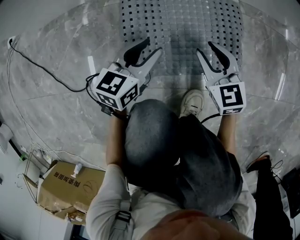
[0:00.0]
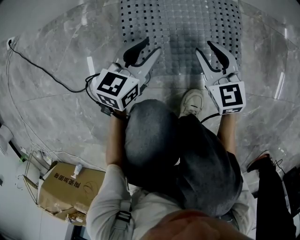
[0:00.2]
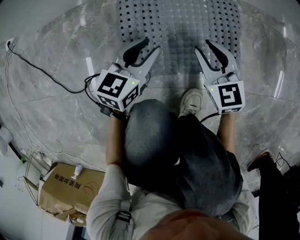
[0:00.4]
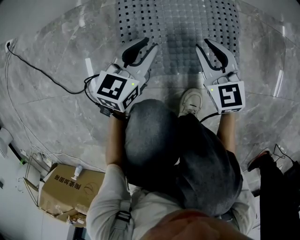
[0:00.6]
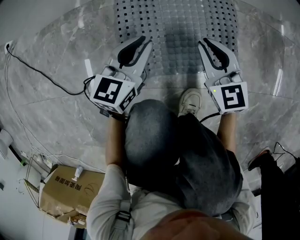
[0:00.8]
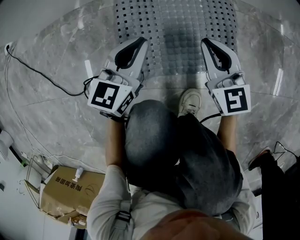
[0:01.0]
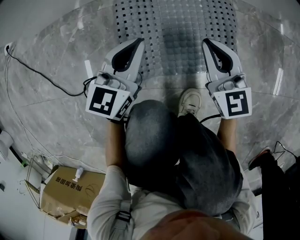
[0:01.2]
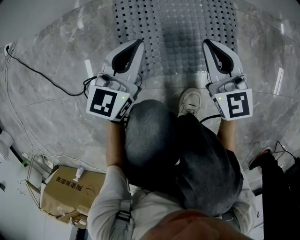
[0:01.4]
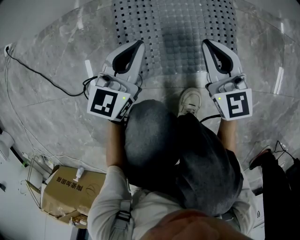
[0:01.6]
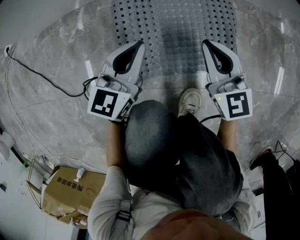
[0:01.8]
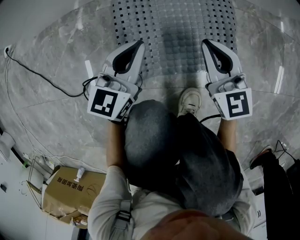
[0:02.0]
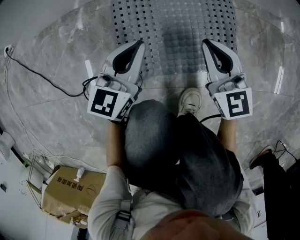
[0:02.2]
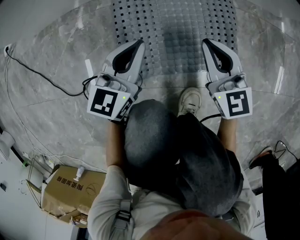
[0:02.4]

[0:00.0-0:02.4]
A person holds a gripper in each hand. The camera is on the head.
0:00.0 to 0:01.2: Both grippers move upward, about 5 cm. The right gripper closes its fingers, while the left gripper closes.
0:01.2 to 0:02.4: The two grippers keep their place.

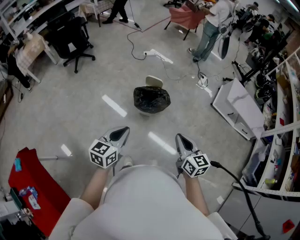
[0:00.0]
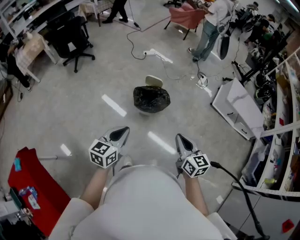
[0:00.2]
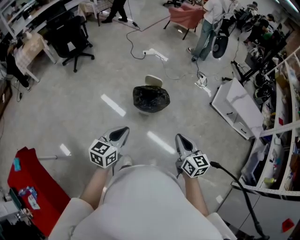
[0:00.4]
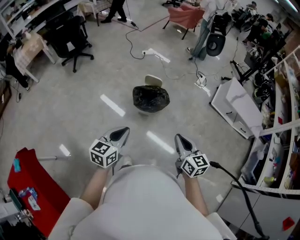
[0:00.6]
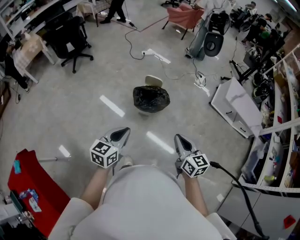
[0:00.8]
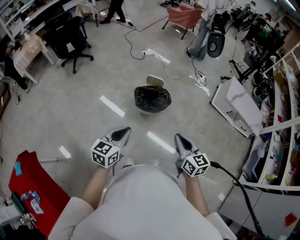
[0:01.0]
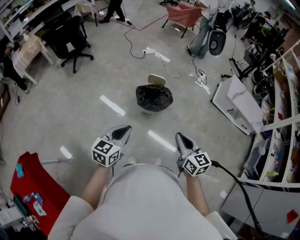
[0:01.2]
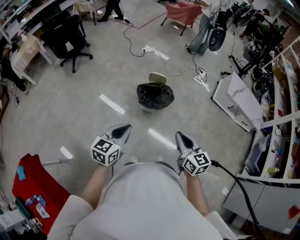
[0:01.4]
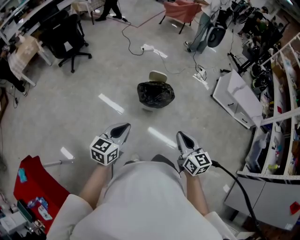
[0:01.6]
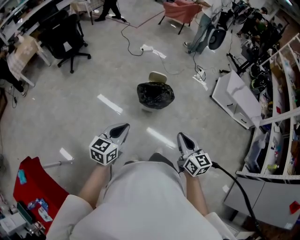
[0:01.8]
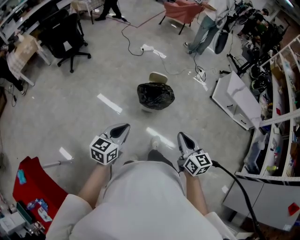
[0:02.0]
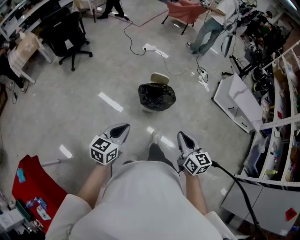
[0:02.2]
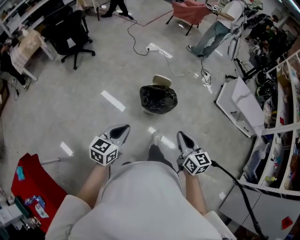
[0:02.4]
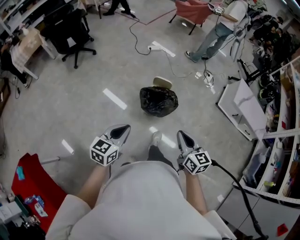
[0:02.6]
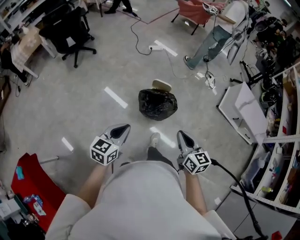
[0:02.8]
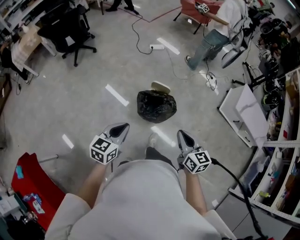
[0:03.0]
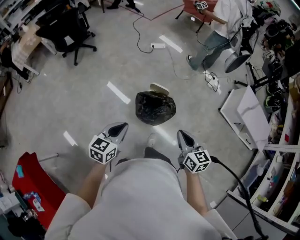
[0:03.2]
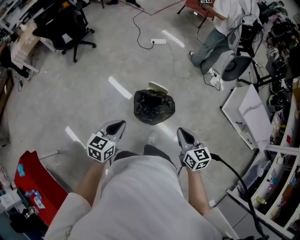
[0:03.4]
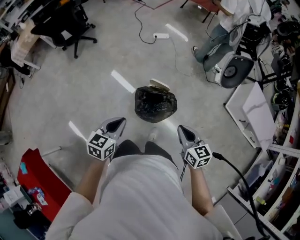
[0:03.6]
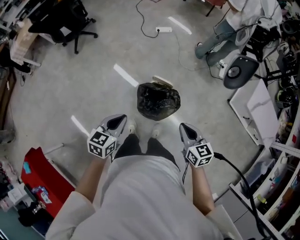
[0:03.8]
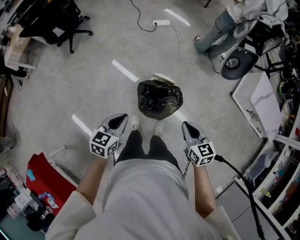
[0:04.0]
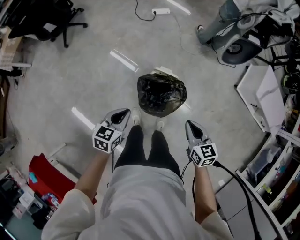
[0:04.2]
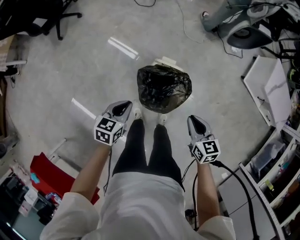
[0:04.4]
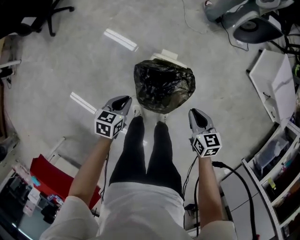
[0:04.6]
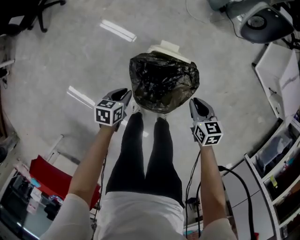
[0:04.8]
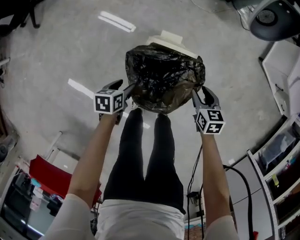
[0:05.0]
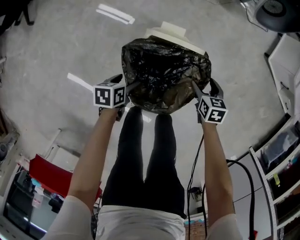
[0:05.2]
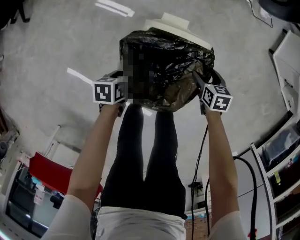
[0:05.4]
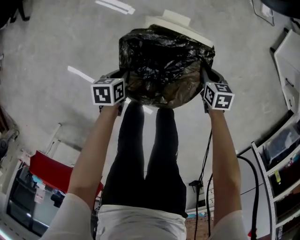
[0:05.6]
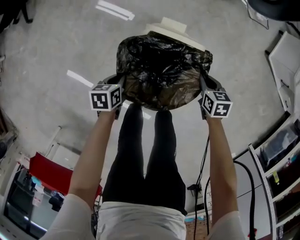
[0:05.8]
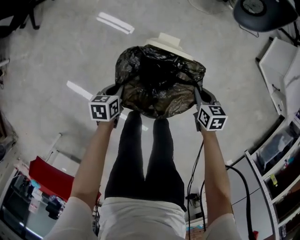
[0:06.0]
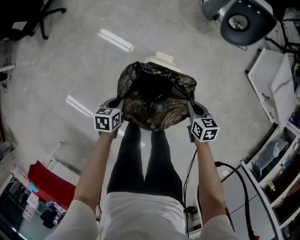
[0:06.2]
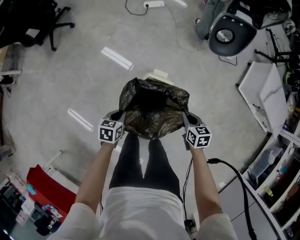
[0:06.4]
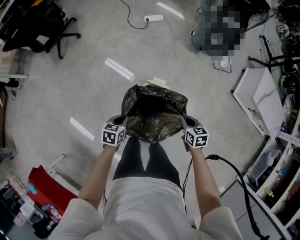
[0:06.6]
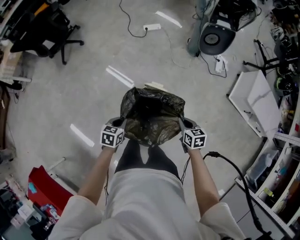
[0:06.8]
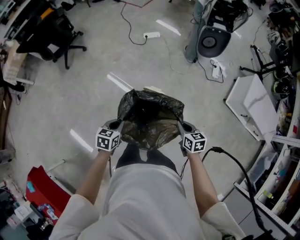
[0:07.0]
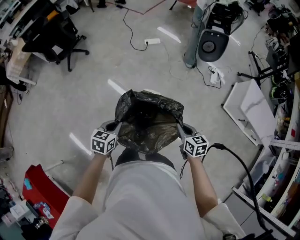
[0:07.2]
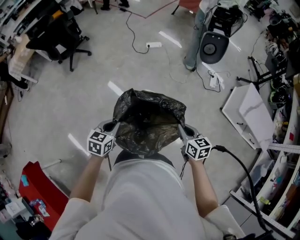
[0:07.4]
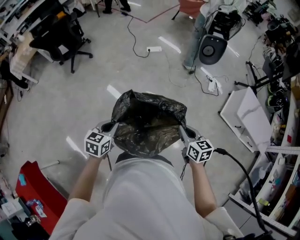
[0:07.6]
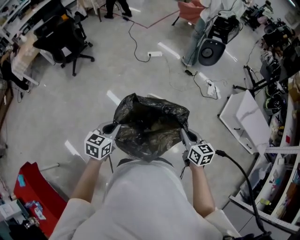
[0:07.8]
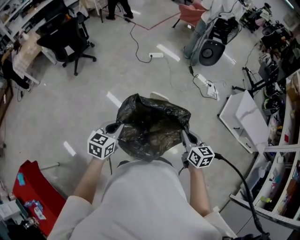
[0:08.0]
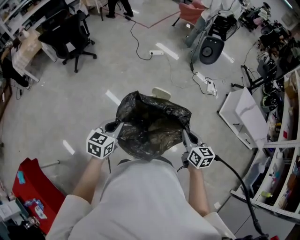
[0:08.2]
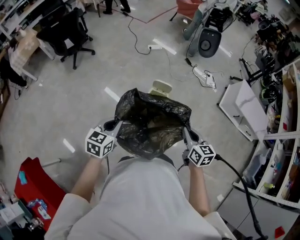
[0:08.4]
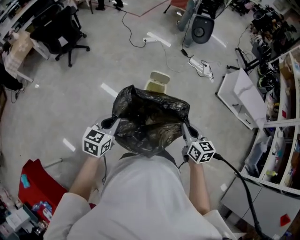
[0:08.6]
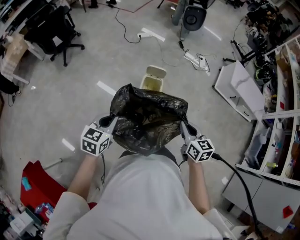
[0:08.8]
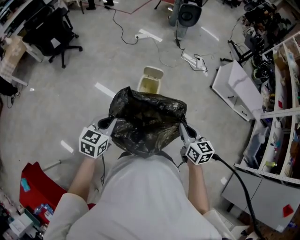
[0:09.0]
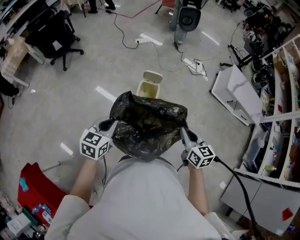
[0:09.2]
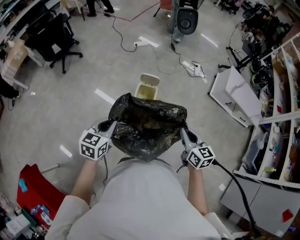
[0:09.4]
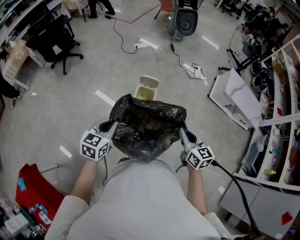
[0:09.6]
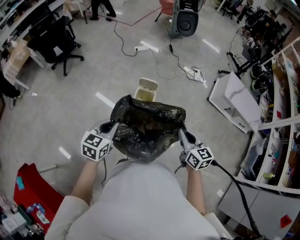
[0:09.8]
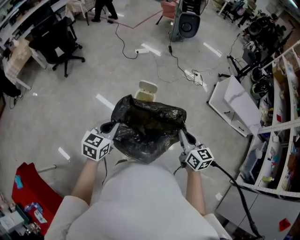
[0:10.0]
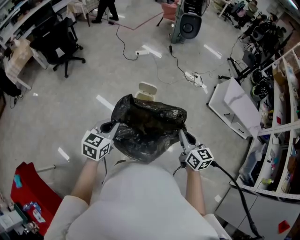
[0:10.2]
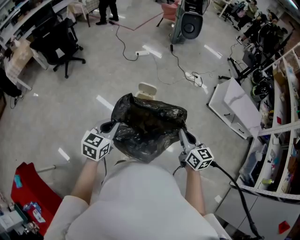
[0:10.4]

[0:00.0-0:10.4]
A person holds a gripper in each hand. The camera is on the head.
0:00.0 to 0:01.4: The grippers both shift to the left by approximately 10 cm.
0:01.4 to 0:03.0: Both grippers move forward, some 20 cm.
0:03.0 to 0:04.4: Both grippers travel together downward and forward, approximately 35 cm. The left gripper changes its angle by about 20 degrees.
0:04.4 to 0:06.0: The grippers both shift downward by approximately 30 cm. The left gripper changes its angle by approximately 20 degrees, and opens, then closes again; the right gripper opens, then closes again.
0:06.0 to 0:07.4: The two grippers go some 50 cm upward. The right gripper swivels approximately 30 degrees. Meanwhile the left gripper swivels some 30 degrees.
0:07.4 to 0:09.0: The left gripper shifts roughly 25 cm backward and to the left; the right gripper heads backward, covering some 25 cm.
0:09.0 to 0:10.4: The grippers both shift to the right by some 10 cm.

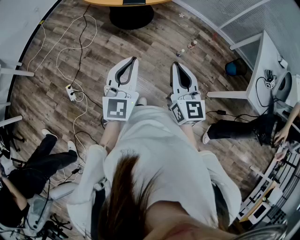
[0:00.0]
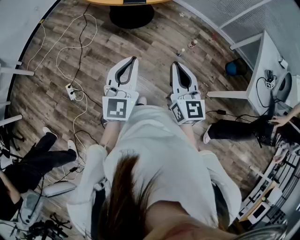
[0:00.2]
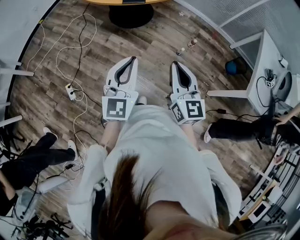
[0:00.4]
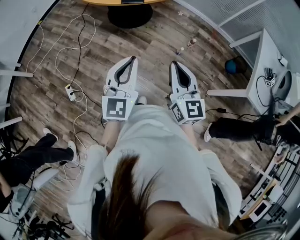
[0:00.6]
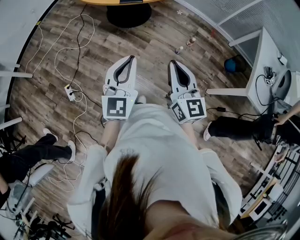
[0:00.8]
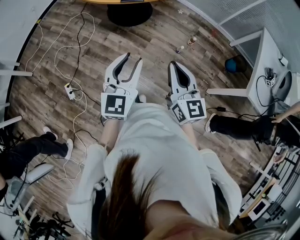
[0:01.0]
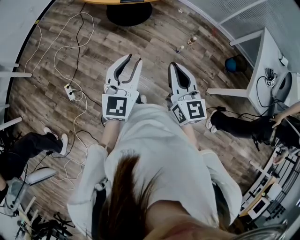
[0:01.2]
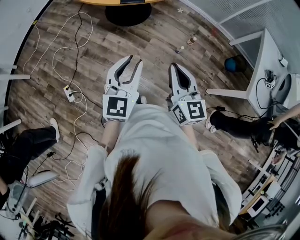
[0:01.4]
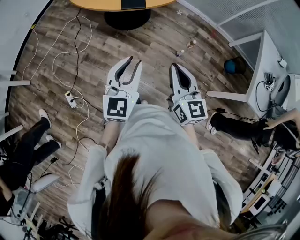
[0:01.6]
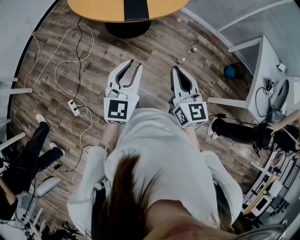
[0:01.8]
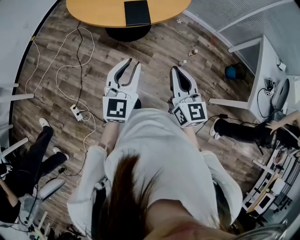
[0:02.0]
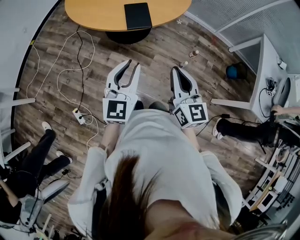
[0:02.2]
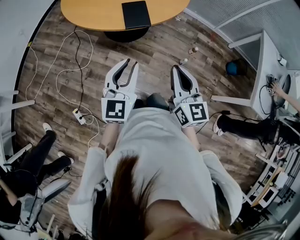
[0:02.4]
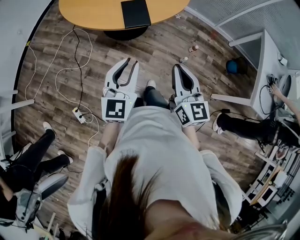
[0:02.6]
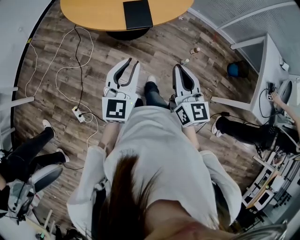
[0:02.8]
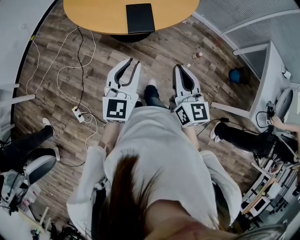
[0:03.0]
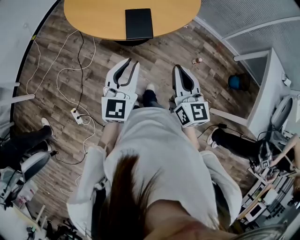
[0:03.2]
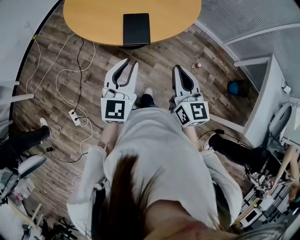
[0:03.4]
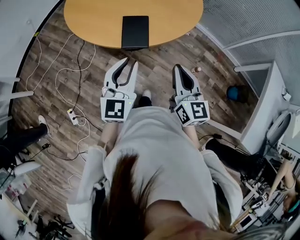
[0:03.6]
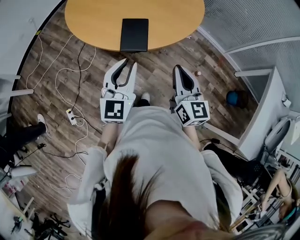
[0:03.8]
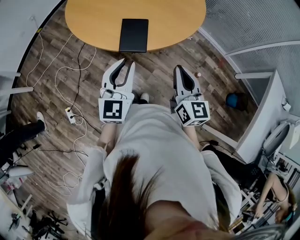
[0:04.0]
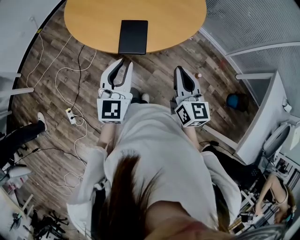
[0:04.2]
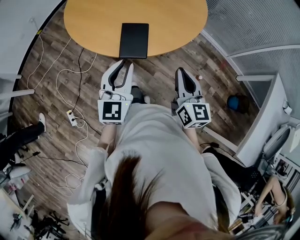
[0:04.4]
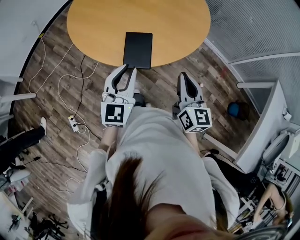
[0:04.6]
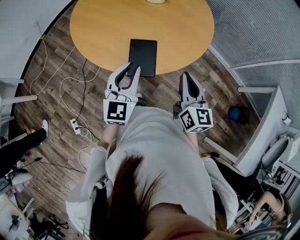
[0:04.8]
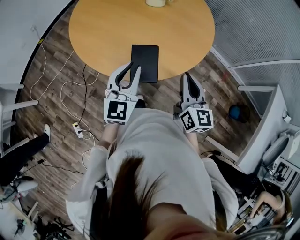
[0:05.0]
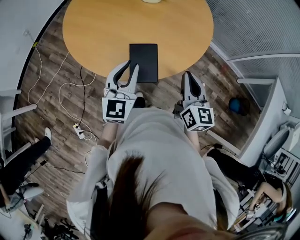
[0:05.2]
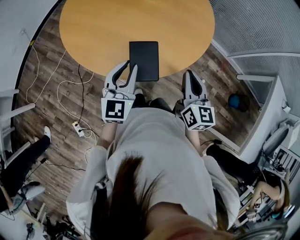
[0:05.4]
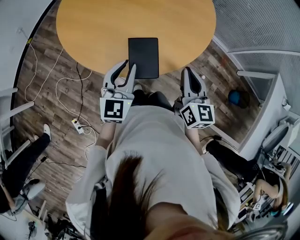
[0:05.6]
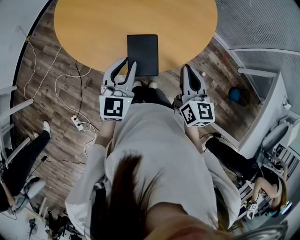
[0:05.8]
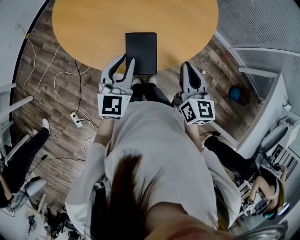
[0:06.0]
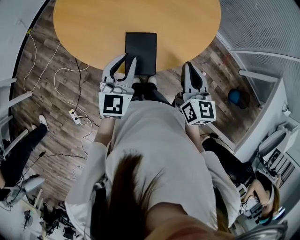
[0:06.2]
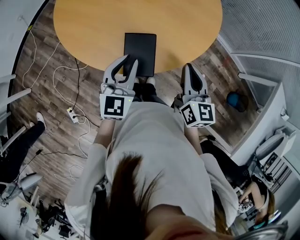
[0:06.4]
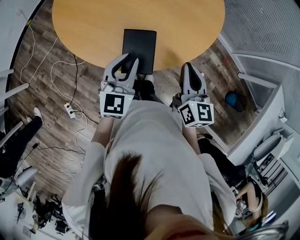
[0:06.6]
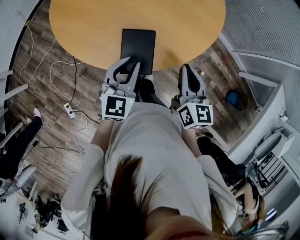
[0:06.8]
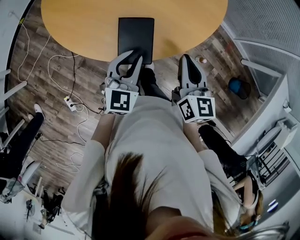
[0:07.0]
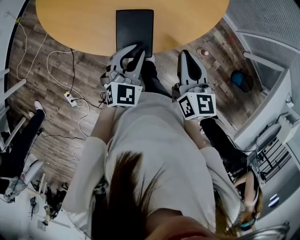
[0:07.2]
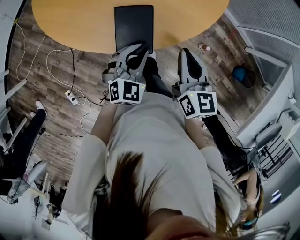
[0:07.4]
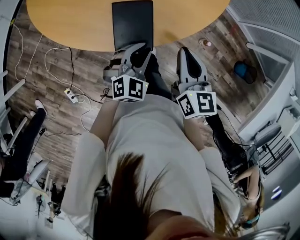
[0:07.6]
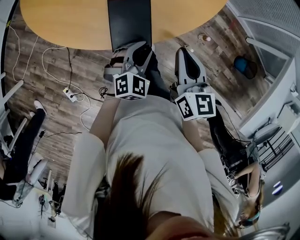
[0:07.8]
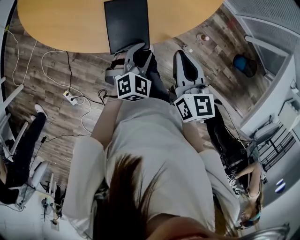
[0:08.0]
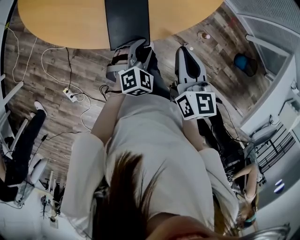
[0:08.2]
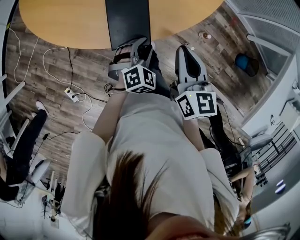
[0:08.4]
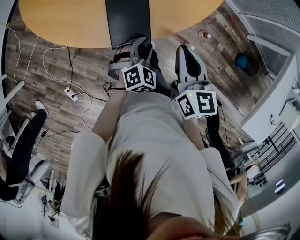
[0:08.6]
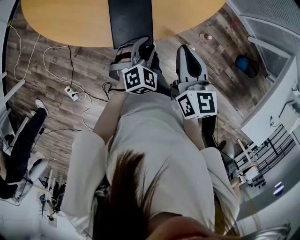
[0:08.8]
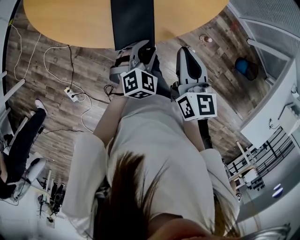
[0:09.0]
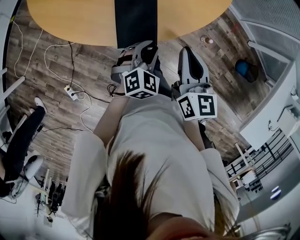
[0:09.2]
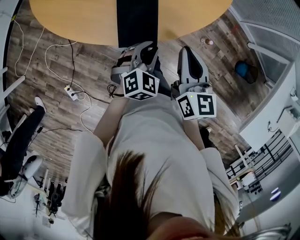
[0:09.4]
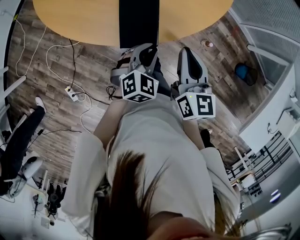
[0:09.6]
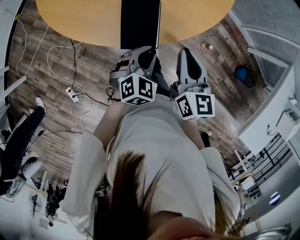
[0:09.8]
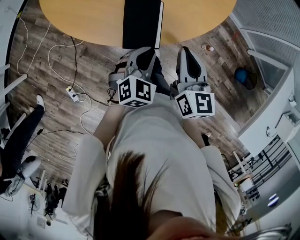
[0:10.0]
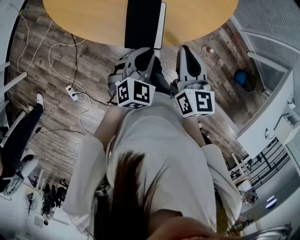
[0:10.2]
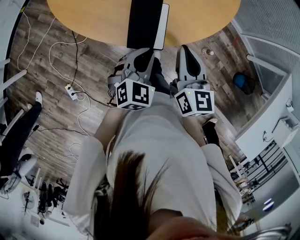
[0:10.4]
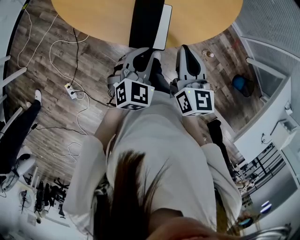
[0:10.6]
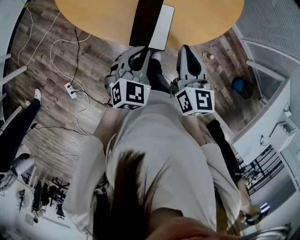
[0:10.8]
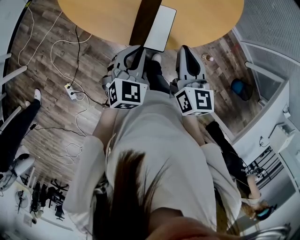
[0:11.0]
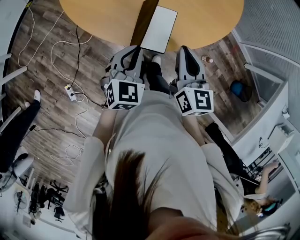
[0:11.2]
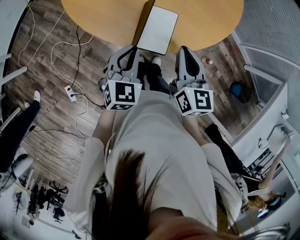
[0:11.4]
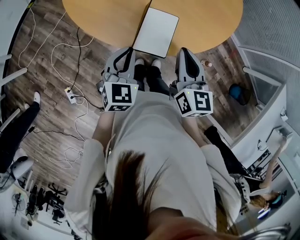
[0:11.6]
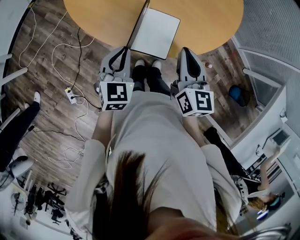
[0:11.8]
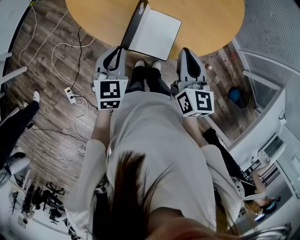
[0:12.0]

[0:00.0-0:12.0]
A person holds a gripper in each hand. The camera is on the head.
0:00.0 to 0:01.6: Both grippers move forward, some 10 cm. The left gripper opens.
0:01.6 to 0:03.0: Both grippers travel together forward, some 20 cm.
0:03.0 to 0:04.4: The right gripper goes some 20 cm forward and to the right. Meanwhile the left gripper is displaced forward by roughly 15 cm.
0:04.4 to 0:06.0: Both grippers travel together forward and to the left, roughly 15 cm.
0:06.0 to 0:07.6: The right gripper travels downward by roughly 5 cm; the left gripper goes about 20 cm downward and to the right, and turns by about 30 degrees.
0:09.0 to 0:10.4: The left gripper travels upward and to the left by about 10 cm, and closes its fingers. Meanwhile the right gripper is displaced to the left by some 5 cm.
0:10.4 to 0:12.0: The right gripper moves approximately 5 cm; the left gripper is displaced to the left by roughly 15 cm, and turns by some 30 degrees.
